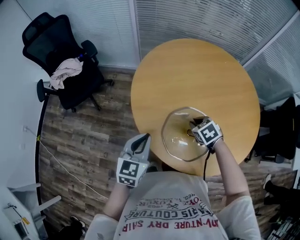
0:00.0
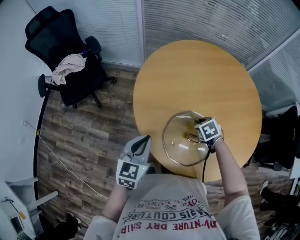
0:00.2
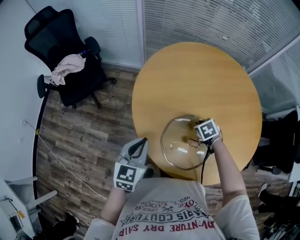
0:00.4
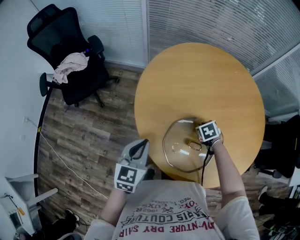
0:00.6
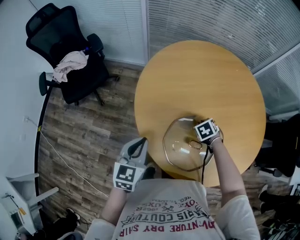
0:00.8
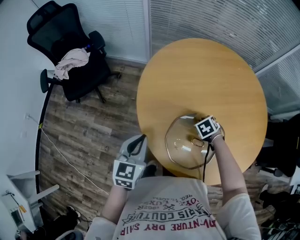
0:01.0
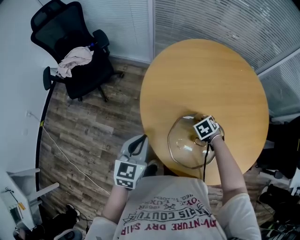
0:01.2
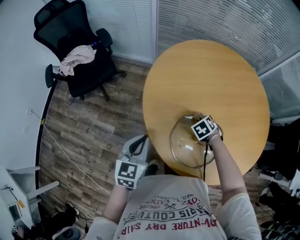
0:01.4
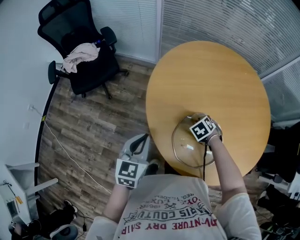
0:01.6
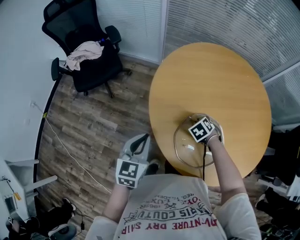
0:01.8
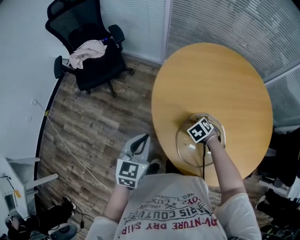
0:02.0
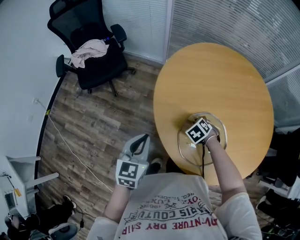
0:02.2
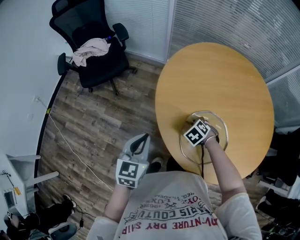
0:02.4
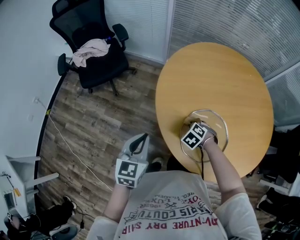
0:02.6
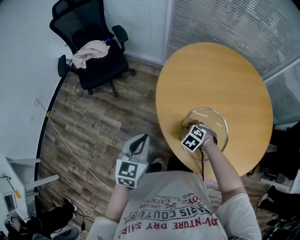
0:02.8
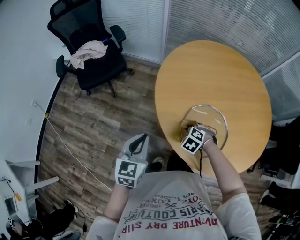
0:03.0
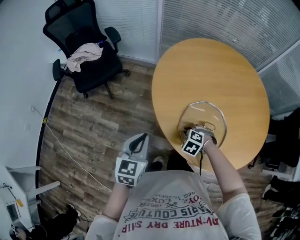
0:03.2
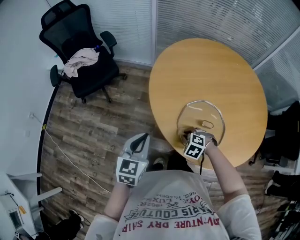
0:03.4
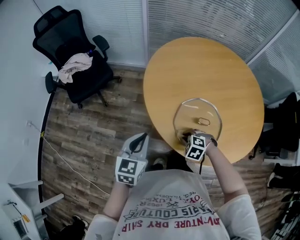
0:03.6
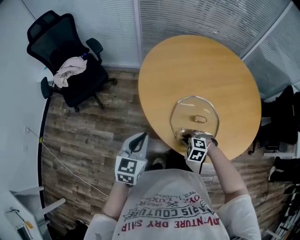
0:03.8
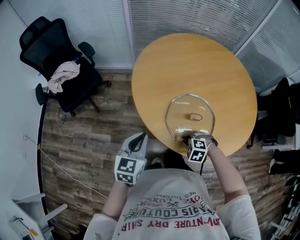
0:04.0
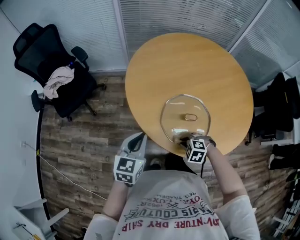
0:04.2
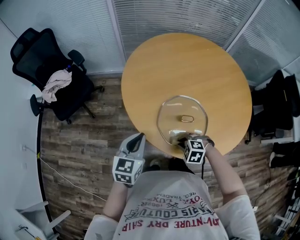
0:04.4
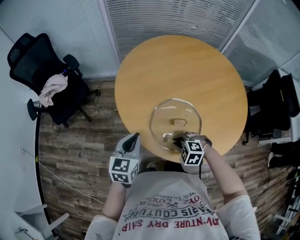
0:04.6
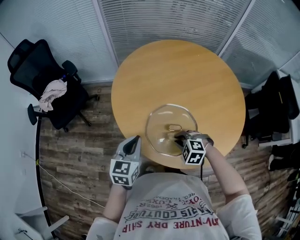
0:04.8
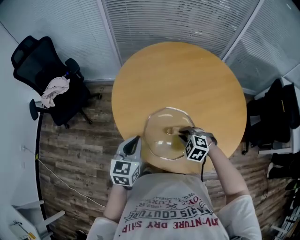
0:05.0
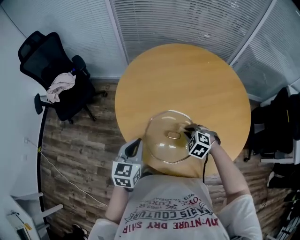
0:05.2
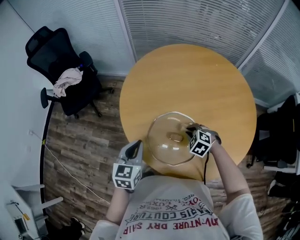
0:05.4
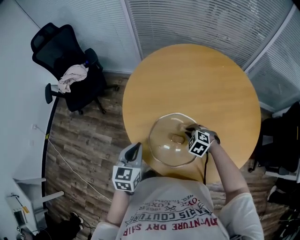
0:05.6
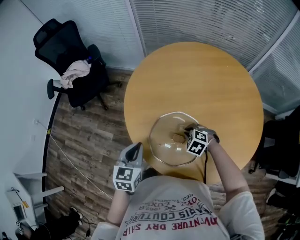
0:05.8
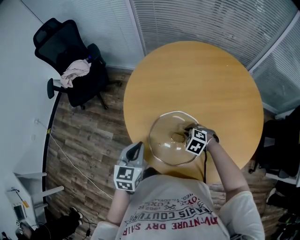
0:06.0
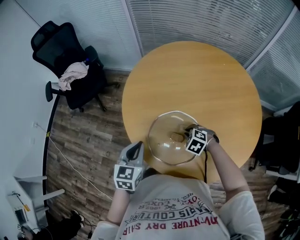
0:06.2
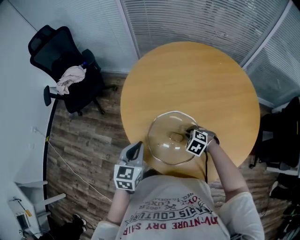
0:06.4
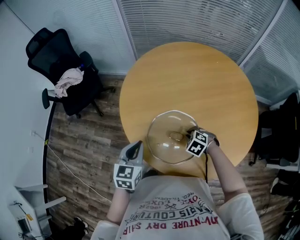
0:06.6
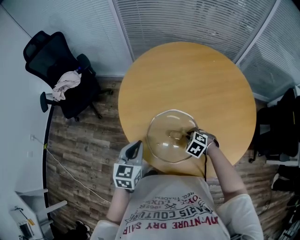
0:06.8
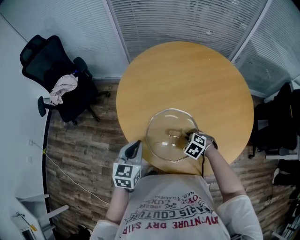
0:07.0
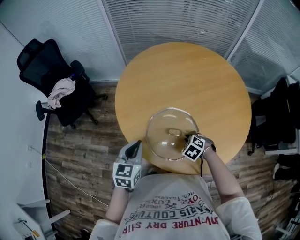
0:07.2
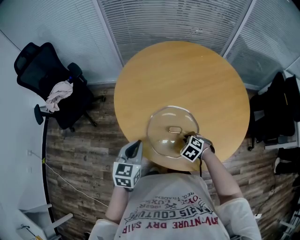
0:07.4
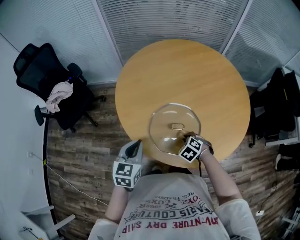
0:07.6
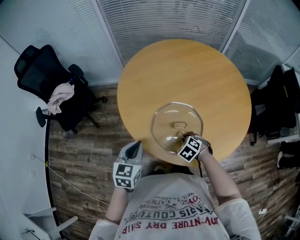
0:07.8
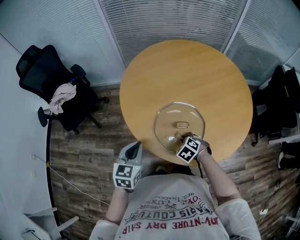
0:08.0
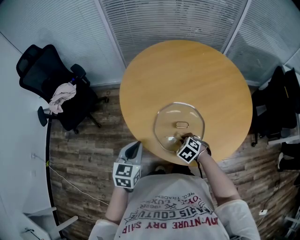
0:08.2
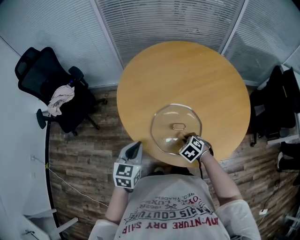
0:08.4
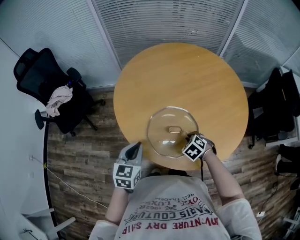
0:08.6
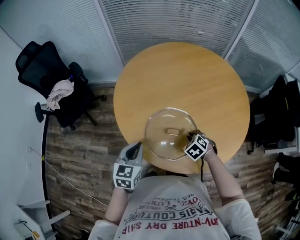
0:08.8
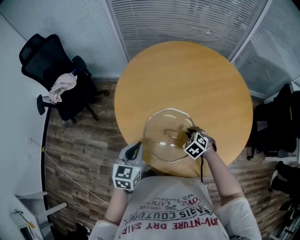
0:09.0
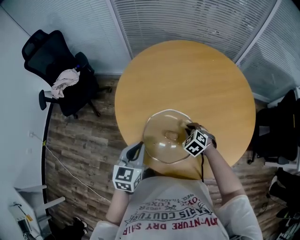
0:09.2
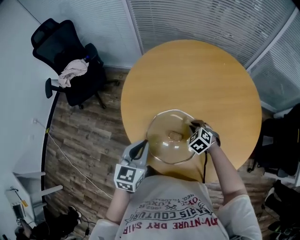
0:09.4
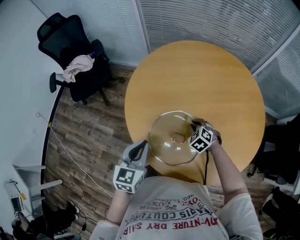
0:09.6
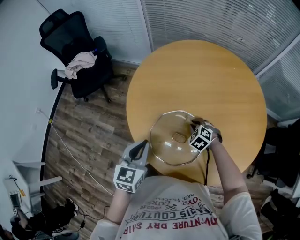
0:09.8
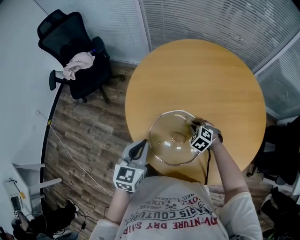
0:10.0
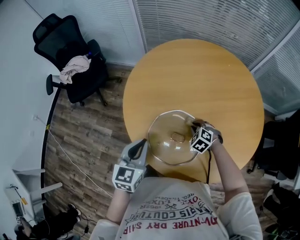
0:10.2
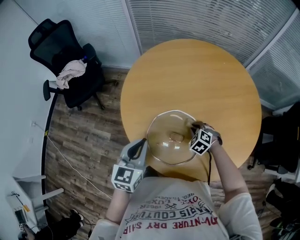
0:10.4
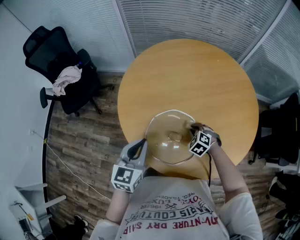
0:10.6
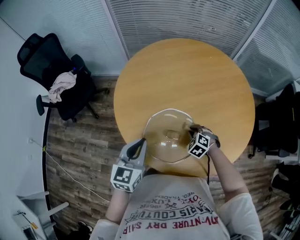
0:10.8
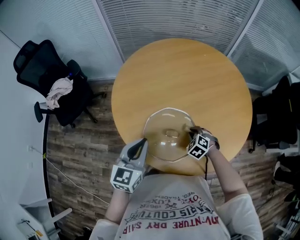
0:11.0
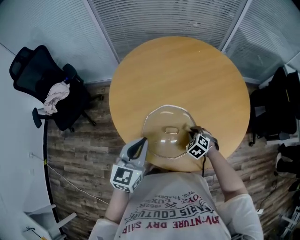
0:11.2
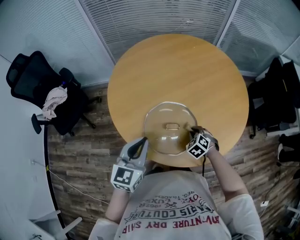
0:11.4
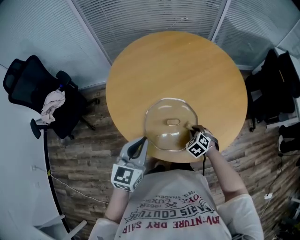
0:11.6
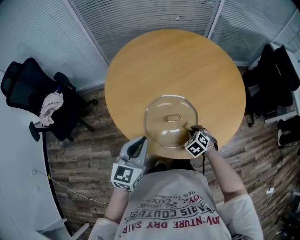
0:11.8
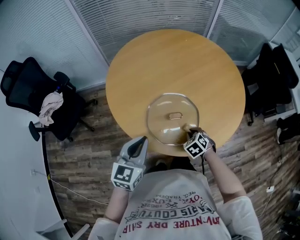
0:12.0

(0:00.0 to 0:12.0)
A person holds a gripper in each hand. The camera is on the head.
0:00.0 - 0:01.6: The left gripper shifts by approximately 5 cm. Meanwhile the right gripper travels downward by approximately 10 cm.
0:01.6 - 0:03.0: The left gripper ends up roughly 10 cm from where it was, while the right gripper moves roughly 15 cm, and swivels some 30 degrees.
0:03.0 - 0:04.4: The left gripper changes place by roughly 10 cm, while the right gripper ends up about 15 cm from where it was.
0:04.4 - 0:06.0: The right gripper heads to the right and forward, covering approximately 20 cm, while the left gripper shifts approximately 10 cm to the right, and rotates some 20 degrees.
0:06.0 - 0:07.6: The right gripper changes place by roughly 10 cm, and changes its angle by roughly 30 degrees.
0:07.6 - 0:09.0: The right gripper moves forward and to the right, some 10 cm.
0:09.0 - 0:10.4: The right gripper heads forward, covering some 5 cm.
0:10.4 - 0:12.0: The right gripper moves roughly 15 cm, and swivels about 40 degrees. The left gripper moves approximately 5 cm, and swivels about 30 degrees.

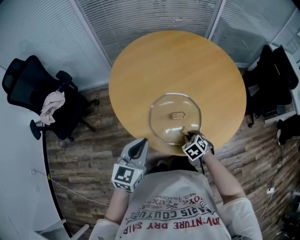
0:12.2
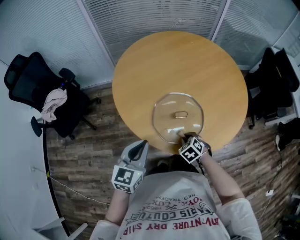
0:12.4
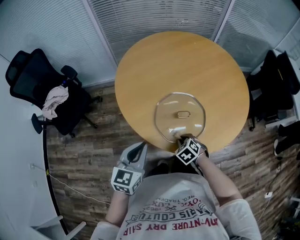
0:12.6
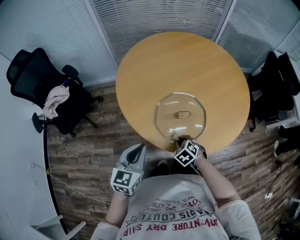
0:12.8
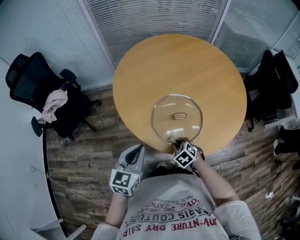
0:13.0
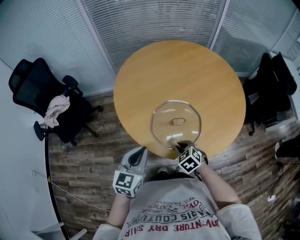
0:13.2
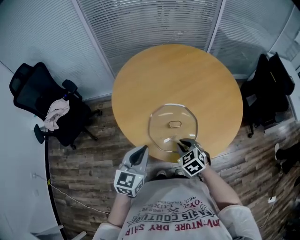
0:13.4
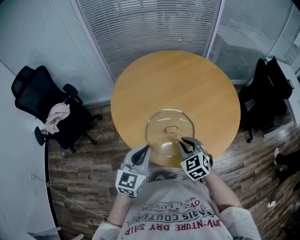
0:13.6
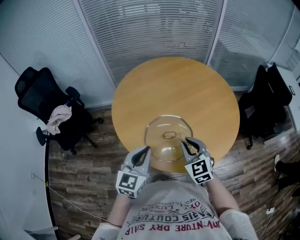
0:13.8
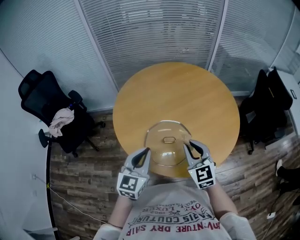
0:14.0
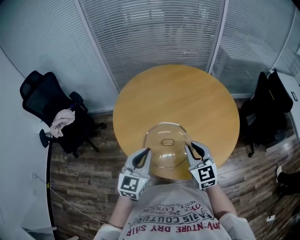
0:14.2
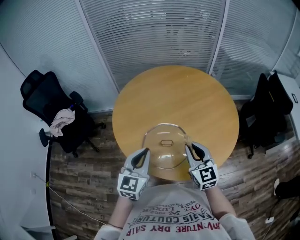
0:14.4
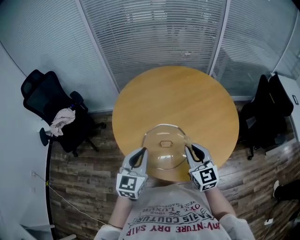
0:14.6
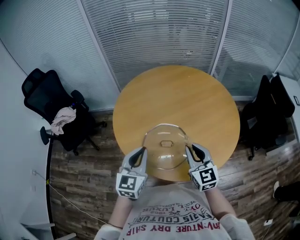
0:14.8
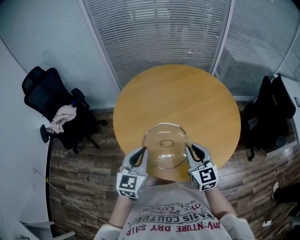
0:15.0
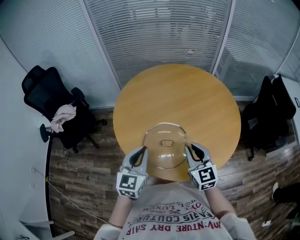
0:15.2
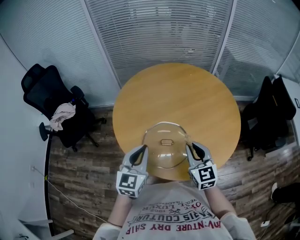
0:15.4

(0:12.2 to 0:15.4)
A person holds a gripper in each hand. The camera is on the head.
0:12.2 - 0:13.8: The right gripper heads upward, covering about 20 cm, and points its fingers some 40 degrees further upward. Meanwhile the left gripper shifts approximately 10 cm upward and to the right.
0:13.8 - 0:15.4: The right gripper moves to the right, about 5 cm.

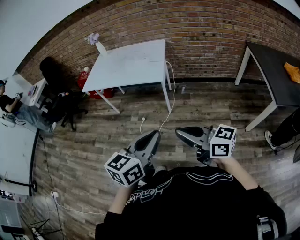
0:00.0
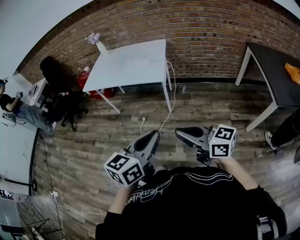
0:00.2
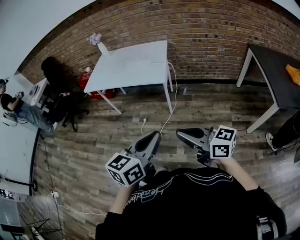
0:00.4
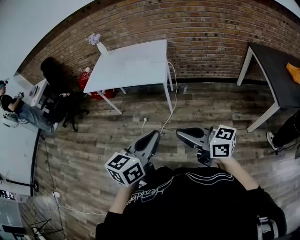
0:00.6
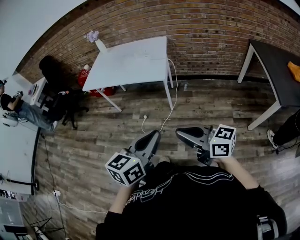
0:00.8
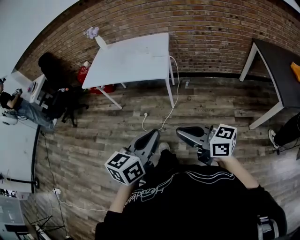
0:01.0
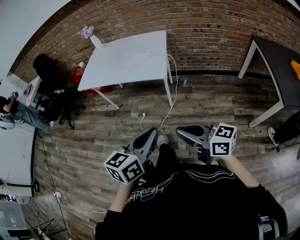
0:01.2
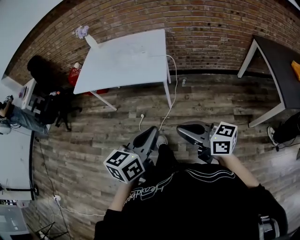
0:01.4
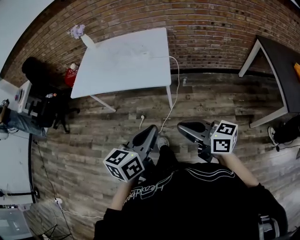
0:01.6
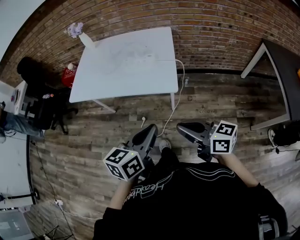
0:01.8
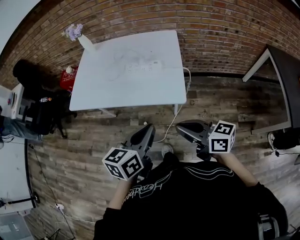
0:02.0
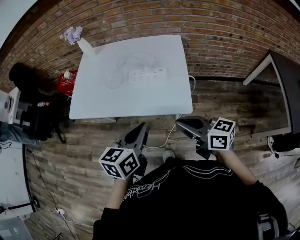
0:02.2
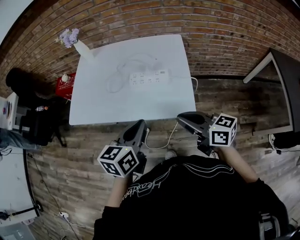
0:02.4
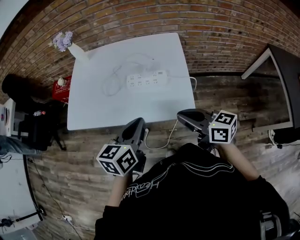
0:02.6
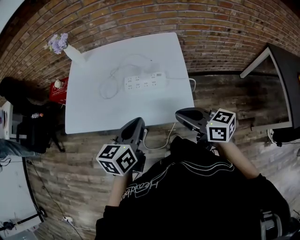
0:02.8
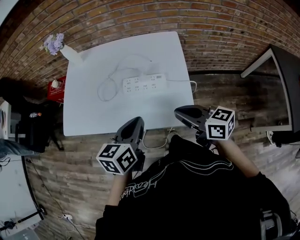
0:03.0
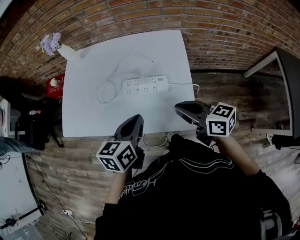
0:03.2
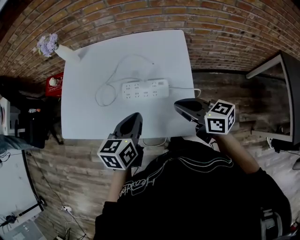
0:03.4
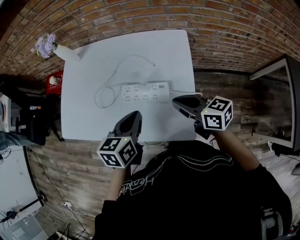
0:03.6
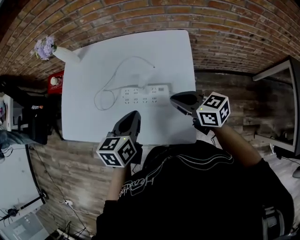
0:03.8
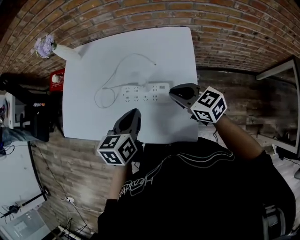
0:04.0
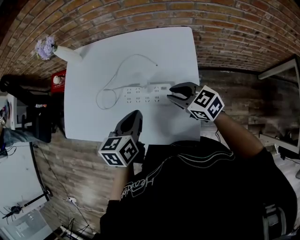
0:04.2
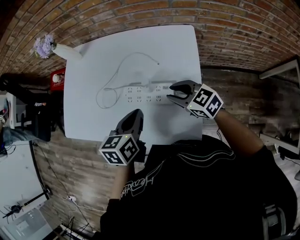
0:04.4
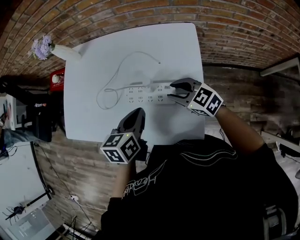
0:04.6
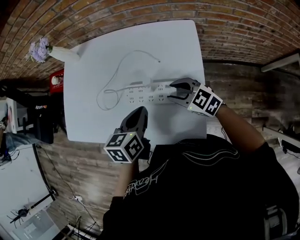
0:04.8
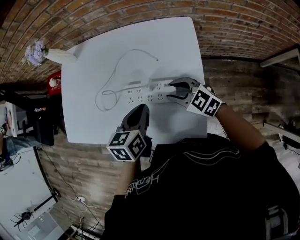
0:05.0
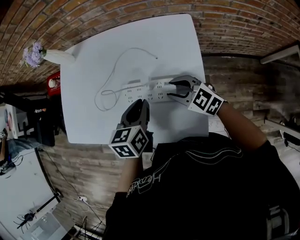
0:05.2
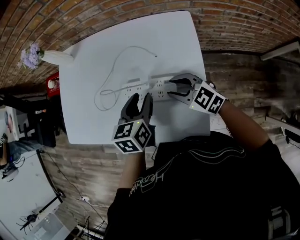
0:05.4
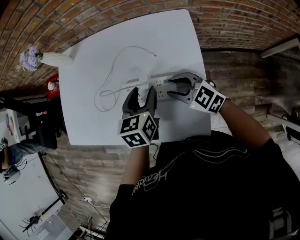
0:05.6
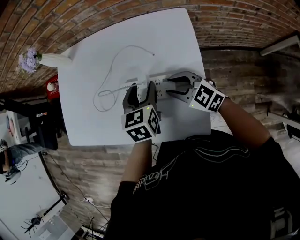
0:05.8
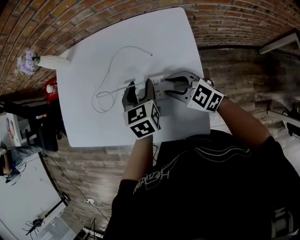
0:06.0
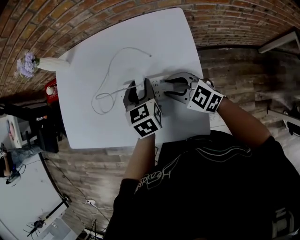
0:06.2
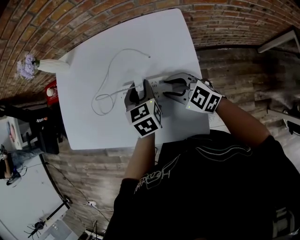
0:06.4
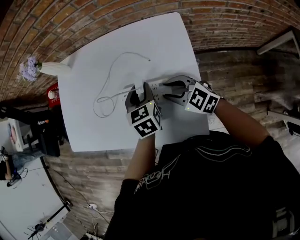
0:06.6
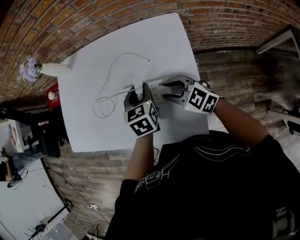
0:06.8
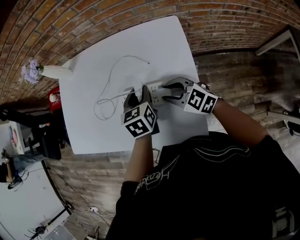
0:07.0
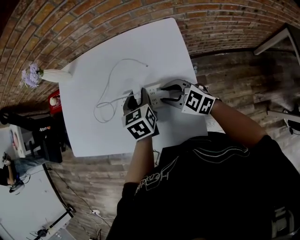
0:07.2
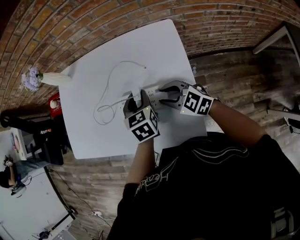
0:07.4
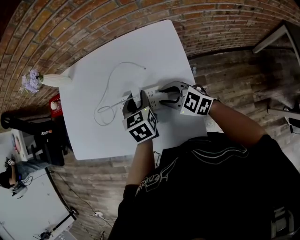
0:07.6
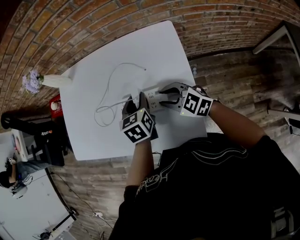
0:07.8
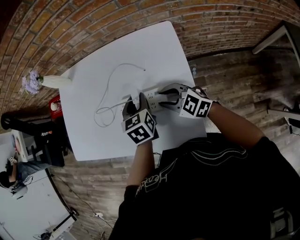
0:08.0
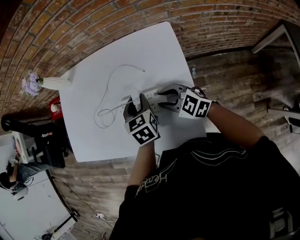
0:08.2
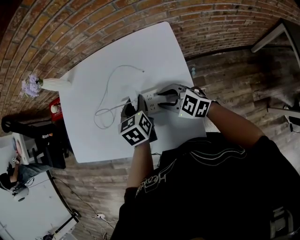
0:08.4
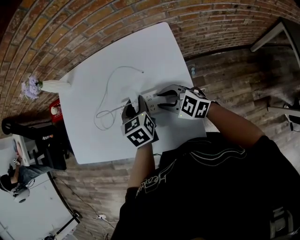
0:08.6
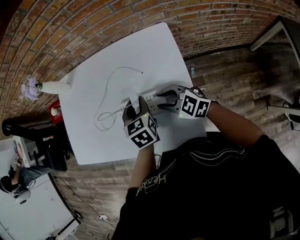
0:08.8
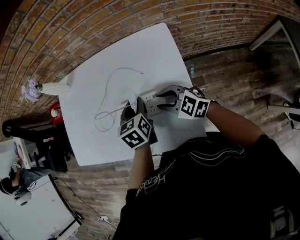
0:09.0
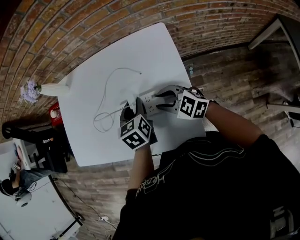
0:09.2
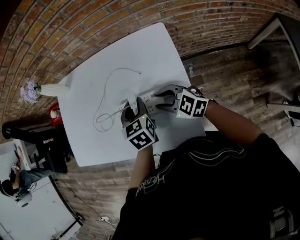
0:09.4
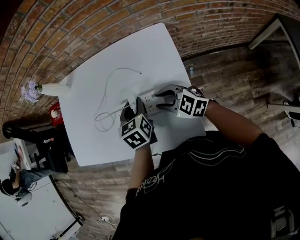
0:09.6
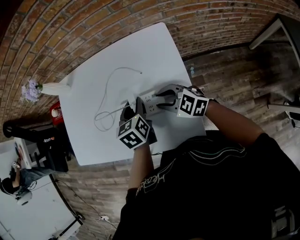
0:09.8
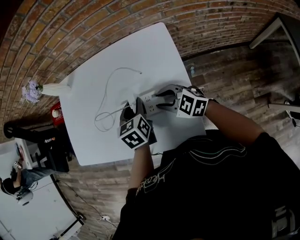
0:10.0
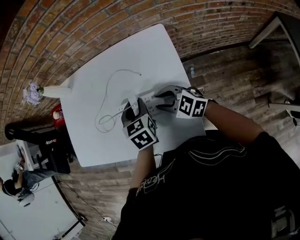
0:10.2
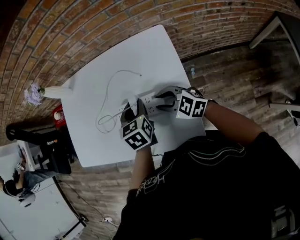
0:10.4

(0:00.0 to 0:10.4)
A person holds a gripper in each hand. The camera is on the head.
0:00.0 - 0:01.4: The right gripper is displaced forward and downward by approximately 15 cm, while the left gripper goes approximately 15 cm forward.
0:01.4 - 0:03.0: The two grippers travel together, forward, approximately 50 cm.
0:03.0 - 0:04.4: Both grippers travel together forward and downward, about 20 cm. The right gripper changes its angle by some 30 degrees, and opens its fingers.
0:04.4 - 0:06.0: The left gripper moves forward, to the right and downward, roughly 10 cm, turns by some 20 degrees, and opens.
0:06.0 - 0:07.4: The left gripper closes.
0:07.4 - 0:10.4: The grippers make only small movements.
